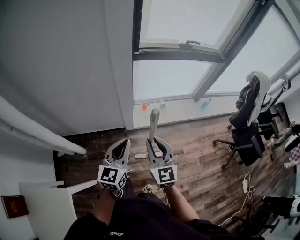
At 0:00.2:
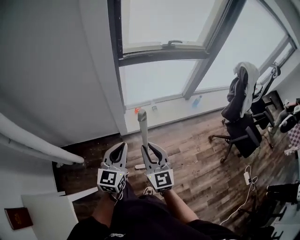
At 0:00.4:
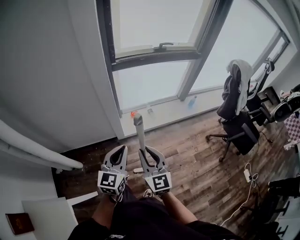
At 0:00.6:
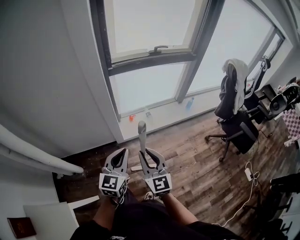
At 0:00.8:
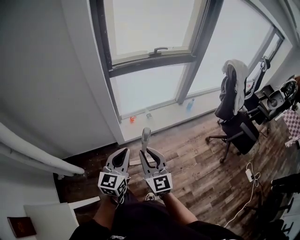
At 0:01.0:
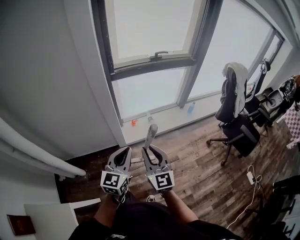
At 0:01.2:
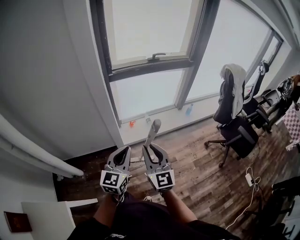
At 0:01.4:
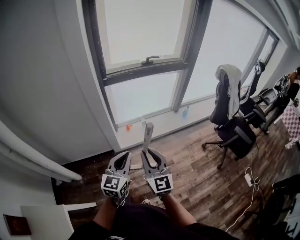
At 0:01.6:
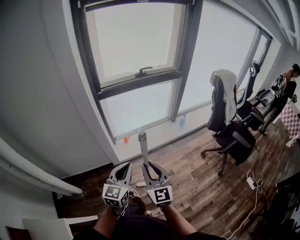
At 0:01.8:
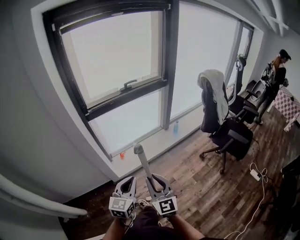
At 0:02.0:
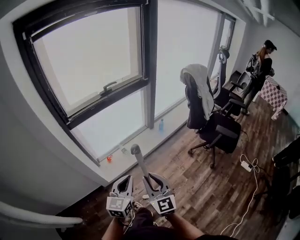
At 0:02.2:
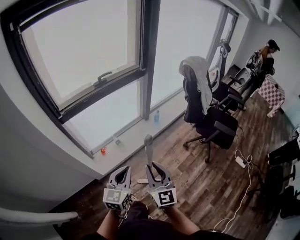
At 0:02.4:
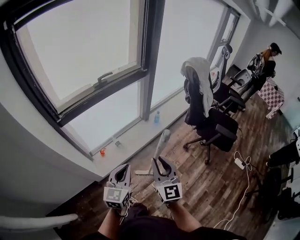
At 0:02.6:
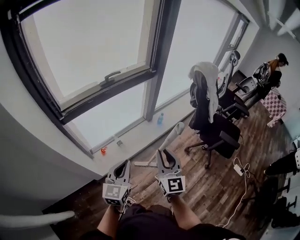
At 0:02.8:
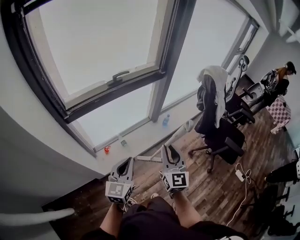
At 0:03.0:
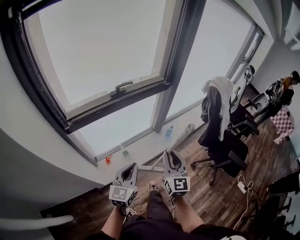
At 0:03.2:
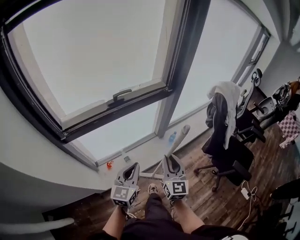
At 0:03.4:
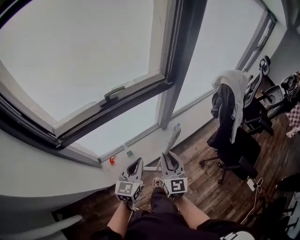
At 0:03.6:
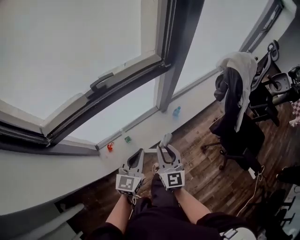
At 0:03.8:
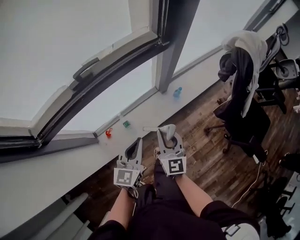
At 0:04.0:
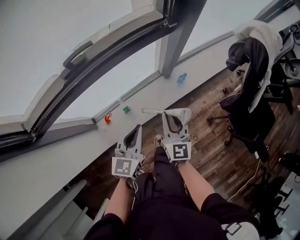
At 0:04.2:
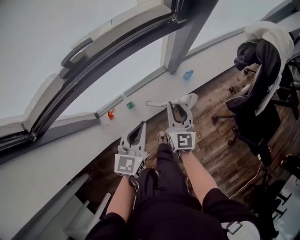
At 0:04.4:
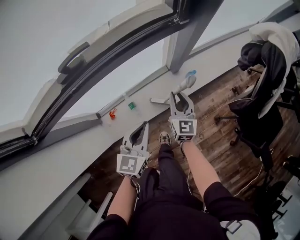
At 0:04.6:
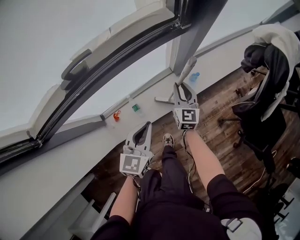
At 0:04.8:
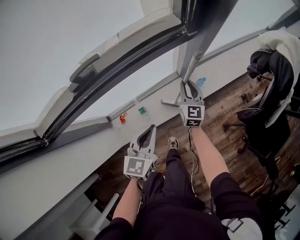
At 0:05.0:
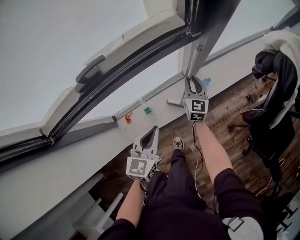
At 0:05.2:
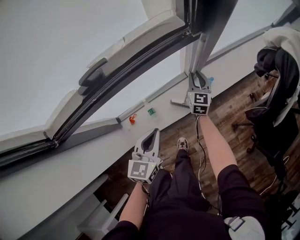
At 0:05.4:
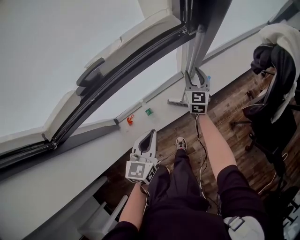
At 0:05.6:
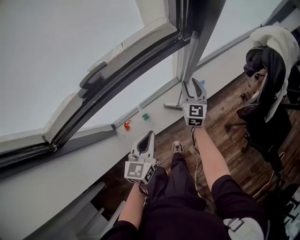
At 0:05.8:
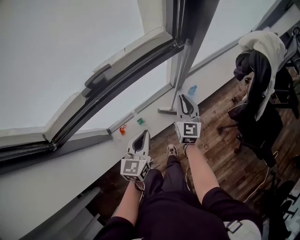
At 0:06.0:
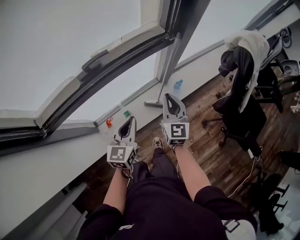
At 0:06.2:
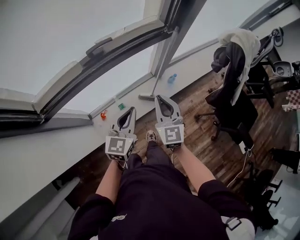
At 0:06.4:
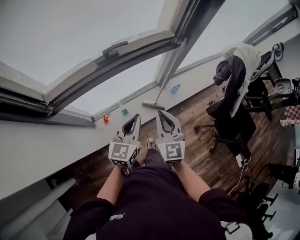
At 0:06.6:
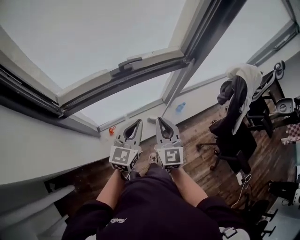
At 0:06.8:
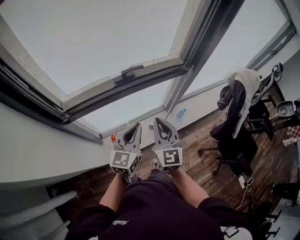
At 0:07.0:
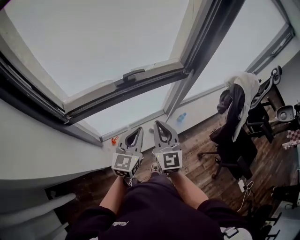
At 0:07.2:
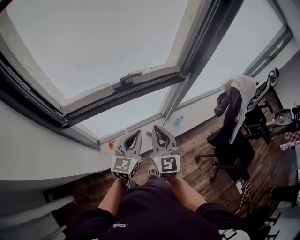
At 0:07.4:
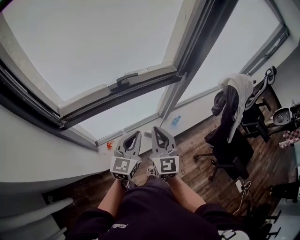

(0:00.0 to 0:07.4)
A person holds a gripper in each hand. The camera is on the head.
0:00.0 - 0:01.4: The right gripper is displaced to the right and backward by roughly 15 cm, while the left gripper moves to the right, approximately 15 cm.
0:01.4 - 0:03.0: The two grippers go approximately 40 cm forward. The right gripper swivels roughly 30 degrees.
0:03.0 - 0:04.4: Both grippers move forward and downward, about 40 cm.
0:04.4 - 0:06.0: The right gripper heads upward, covering about 15 cm, and opens and closes again. The left gripper moves upward and to the left, roughly 10 cm.
0:06.0 - 0:07.4: The right gripper travels upward, backward and to the left by some 25 cm; the left gripper heads upward and backward, covering approximately 15 cm.

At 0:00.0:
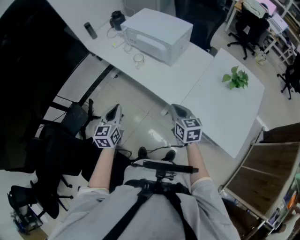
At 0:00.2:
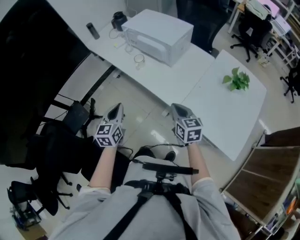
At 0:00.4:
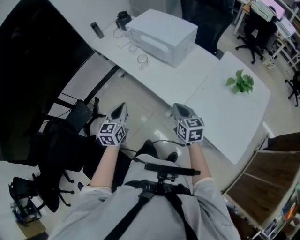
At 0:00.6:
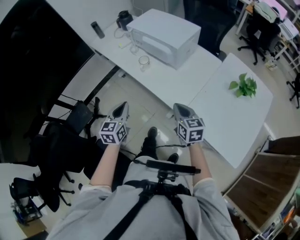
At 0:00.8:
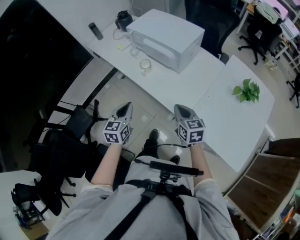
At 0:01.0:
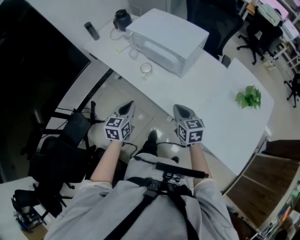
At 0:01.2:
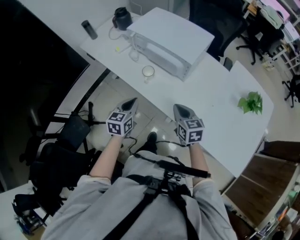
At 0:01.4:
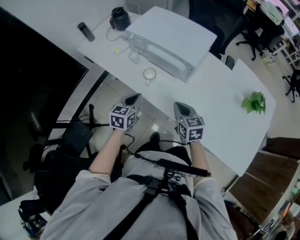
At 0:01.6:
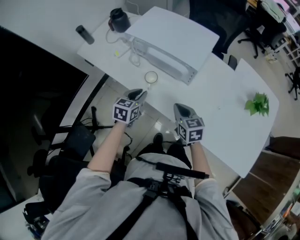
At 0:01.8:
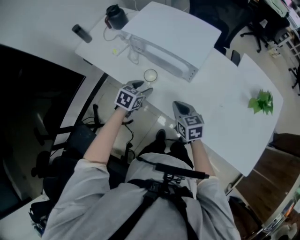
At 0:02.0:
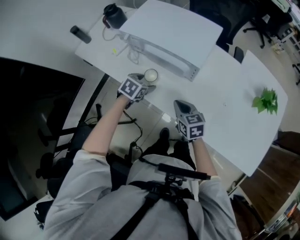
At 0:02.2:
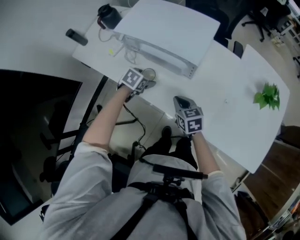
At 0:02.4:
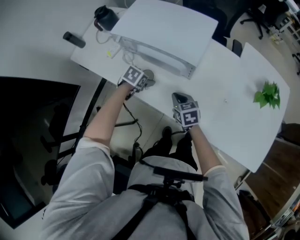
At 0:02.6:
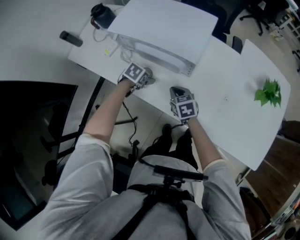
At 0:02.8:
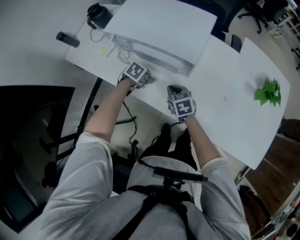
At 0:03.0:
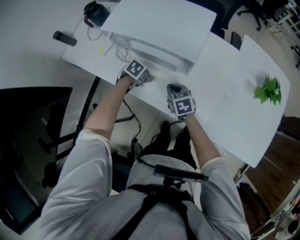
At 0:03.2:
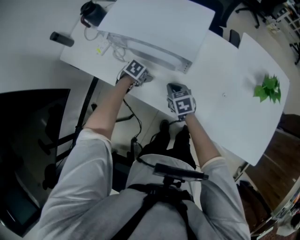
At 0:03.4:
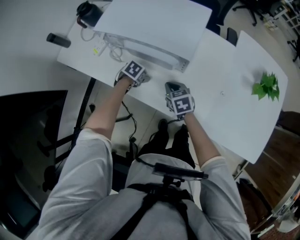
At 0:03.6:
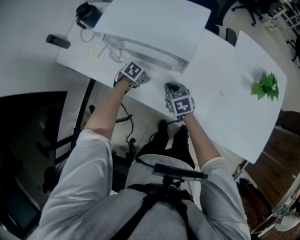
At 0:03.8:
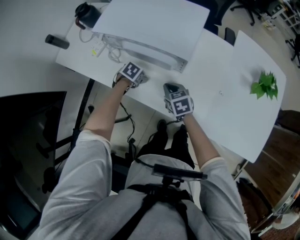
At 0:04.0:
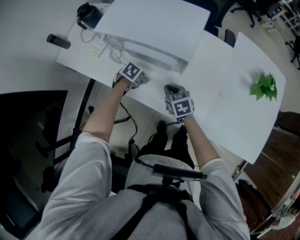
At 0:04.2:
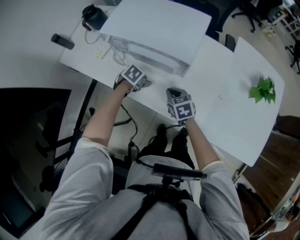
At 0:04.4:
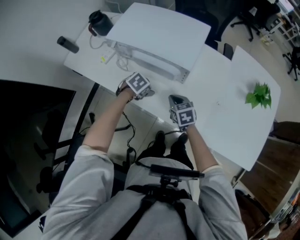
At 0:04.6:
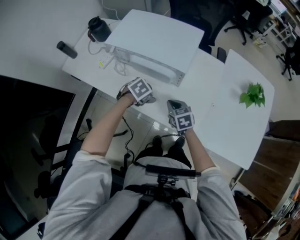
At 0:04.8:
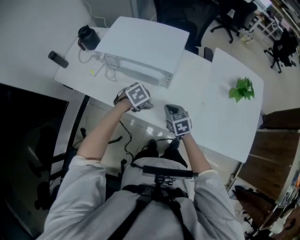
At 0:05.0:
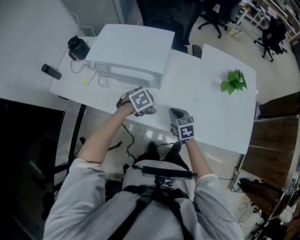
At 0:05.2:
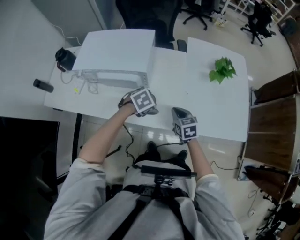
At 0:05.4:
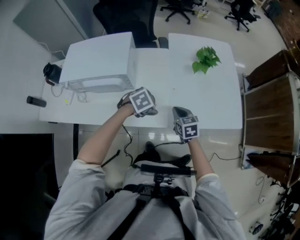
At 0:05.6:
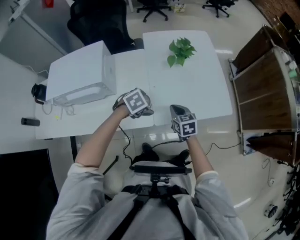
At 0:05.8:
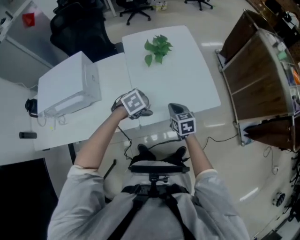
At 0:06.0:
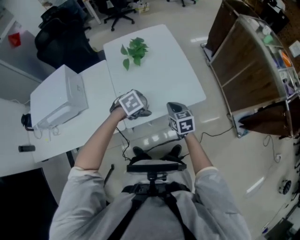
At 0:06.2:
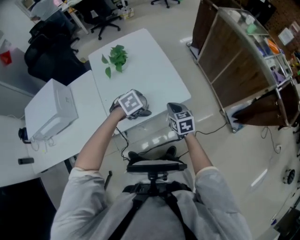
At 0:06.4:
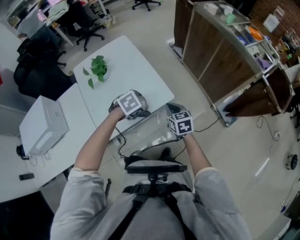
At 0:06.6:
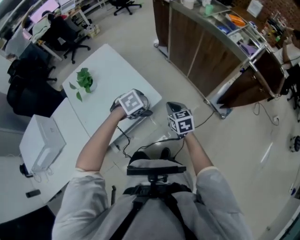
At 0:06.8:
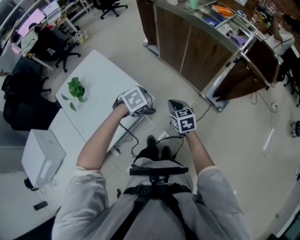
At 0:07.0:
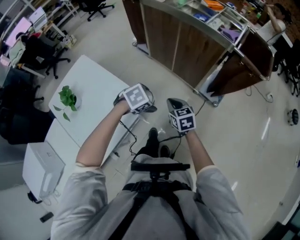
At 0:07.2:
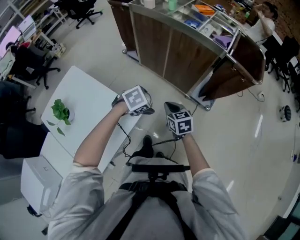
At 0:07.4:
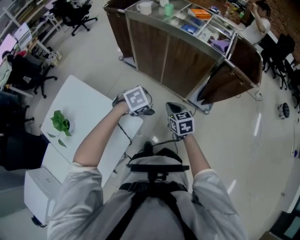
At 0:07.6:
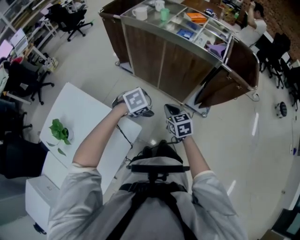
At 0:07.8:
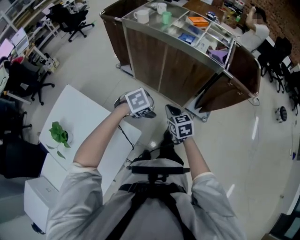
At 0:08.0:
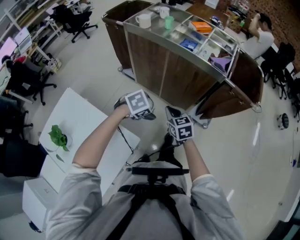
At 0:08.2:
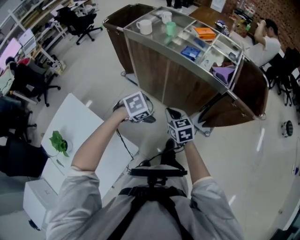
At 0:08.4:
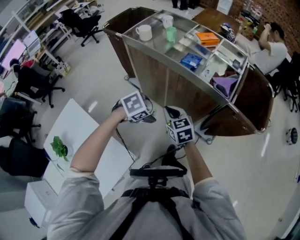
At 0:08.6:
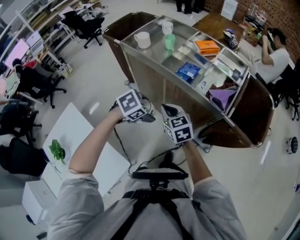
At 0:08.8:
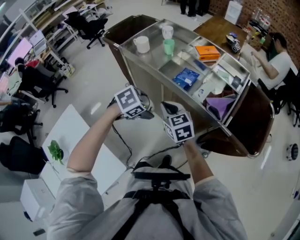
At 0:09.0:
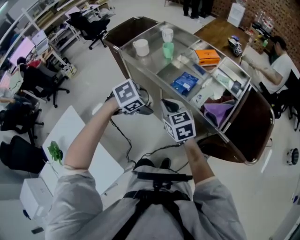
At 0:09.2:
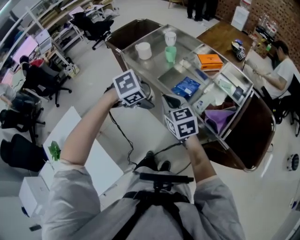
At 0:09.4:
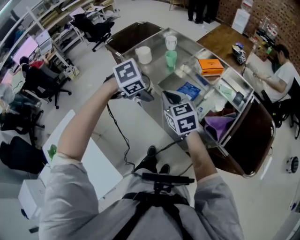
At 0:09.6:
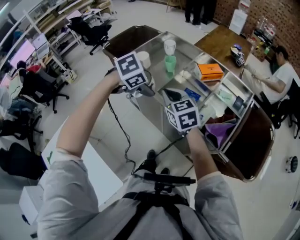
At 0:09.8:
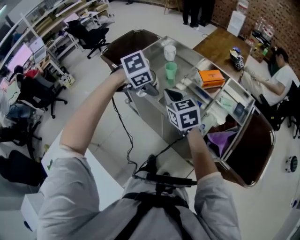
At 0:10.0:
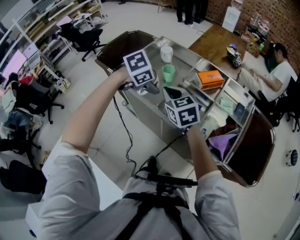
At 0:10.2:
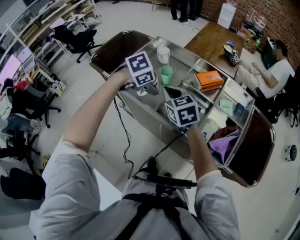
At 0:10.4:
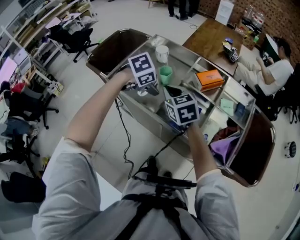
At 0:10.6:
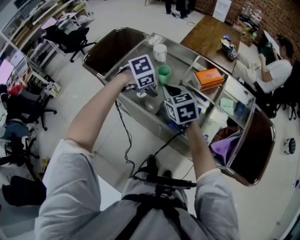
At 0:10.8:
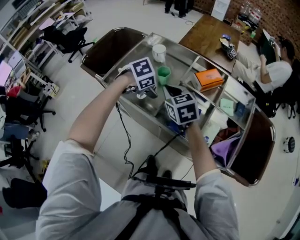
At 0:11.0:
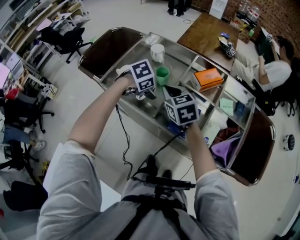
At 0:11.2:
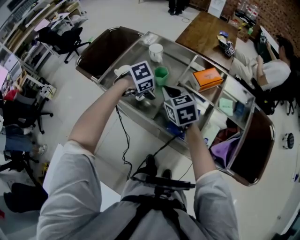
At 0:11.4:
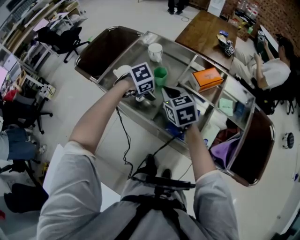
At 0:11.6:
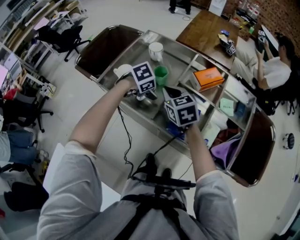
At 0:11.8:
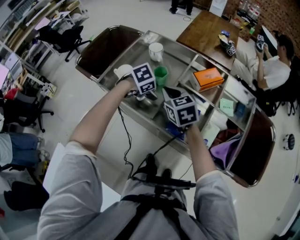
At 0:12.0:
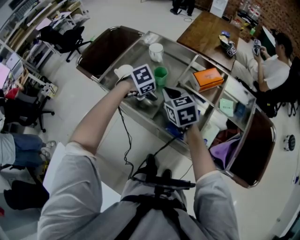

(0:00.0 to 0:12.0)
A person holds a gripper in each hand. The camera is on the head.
0:00.0 - 0:01.6: Both grippers move forward, some 25 cm. The left gripper swivels about 30 degrees.
0:01.6 - 0:03.0: Both grippers travel together downward and forward, roughly 20 cm. The left gripper points its fingers approximately 30 degrees further downward, and opens.
0:03.0 - 0:04.4: The left gripper shifts by approximately 10 cm.
0:04.4 - 0:06.0: Both grippers are carried approximately 60 cm. The left gripper rolls clockwise, seen from behind, by roughly 50 degrees. Meanwhile the right gripper changes its angle by about 50 degrees.
0:06.0 - 0:07.6: The two grippers travel together, some 50 cm. The left gripper twists approximately 40 degrees clockwise, seen from behind; the right gripper changes its angle by some 40 degrees.
0:07.6 - 0:09.0: The left gripper heads forward, covering about 35 cm; the right gripper shifts roughly 35 cm forward and upward, and swivels roughly 20 degrees.
0:09.0 - 0:10.4: The two grippers go some 25 cm forward.
0:10.4 - 0:12.0: The left gripper is displaced downward by approximately 10 cm.

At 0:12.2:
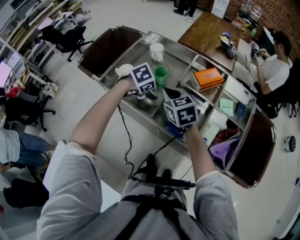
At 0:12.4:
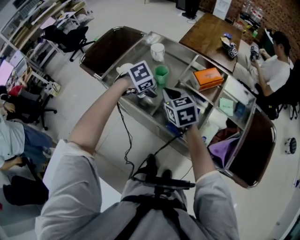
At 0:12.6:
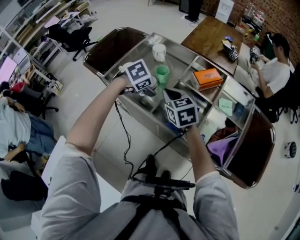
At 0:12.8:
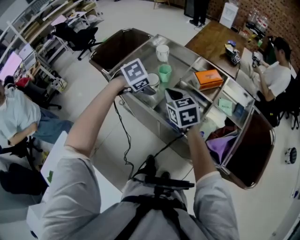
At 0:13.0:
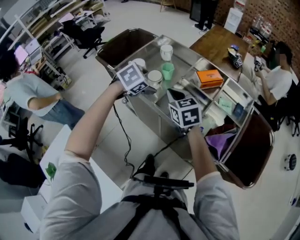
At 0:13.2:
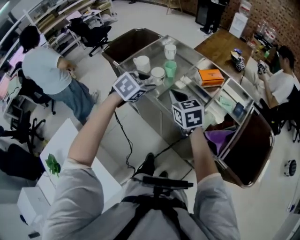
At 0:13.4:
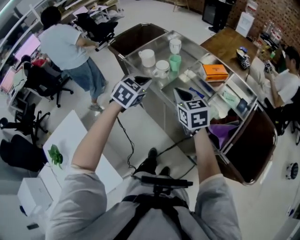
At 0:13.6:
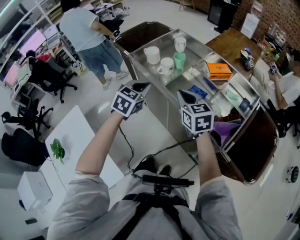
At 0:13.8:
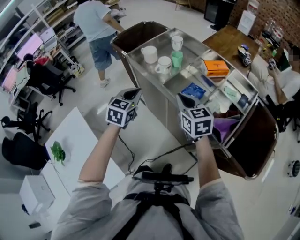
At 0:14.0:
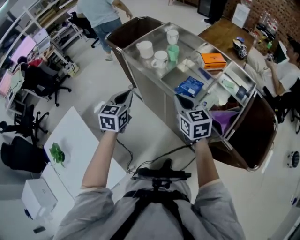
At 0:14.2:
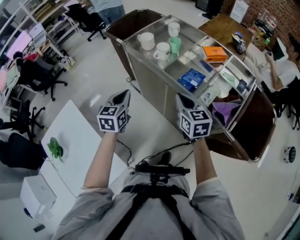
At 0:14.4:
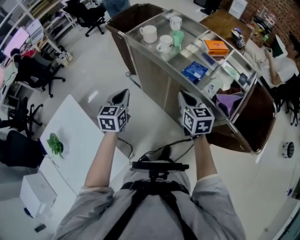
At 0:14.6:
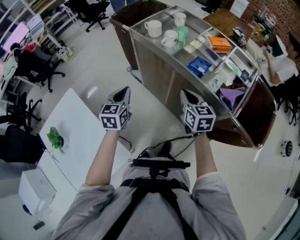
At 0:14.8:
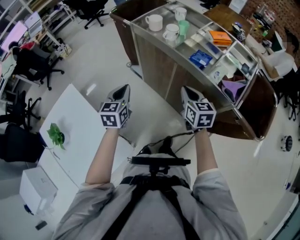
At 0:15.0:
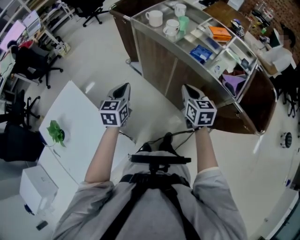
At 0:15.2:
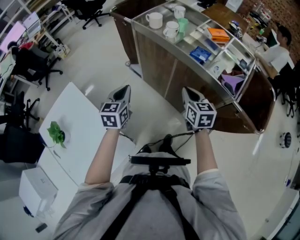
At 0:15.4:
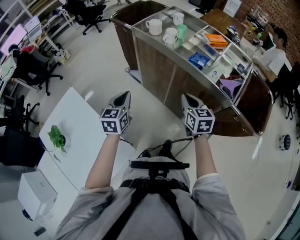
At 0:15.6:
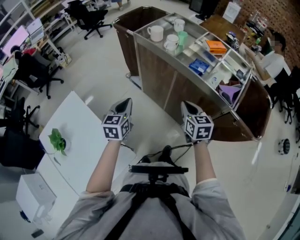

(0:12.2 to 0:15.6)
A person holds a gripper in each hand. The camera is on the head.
0:12.2 - 0:13.8: The left gripper changes place by roughly 30 cm, tilts its fingers about 40 degrees upward, and closes up, while the right gripper moves roughly 20 cm.
0:13.8 - 0:15.6: The right gripper shifts some 20 cm backward and downward; the left gripper shifts approximately 25 cm backward and to the left.
